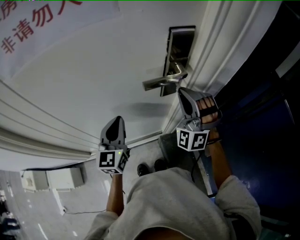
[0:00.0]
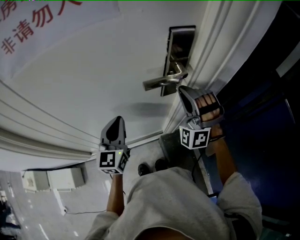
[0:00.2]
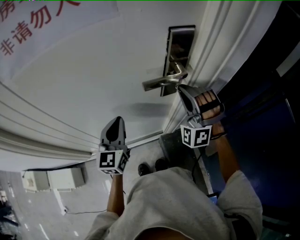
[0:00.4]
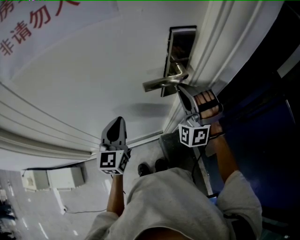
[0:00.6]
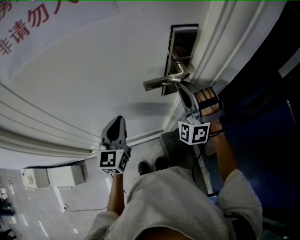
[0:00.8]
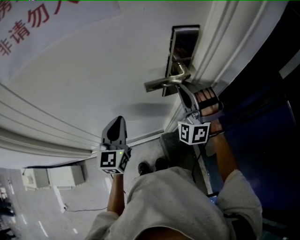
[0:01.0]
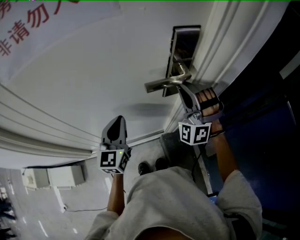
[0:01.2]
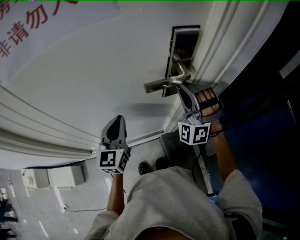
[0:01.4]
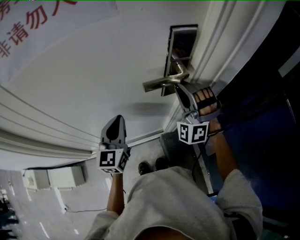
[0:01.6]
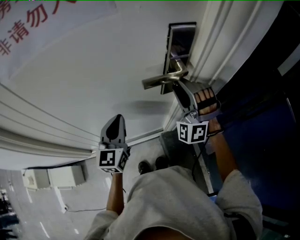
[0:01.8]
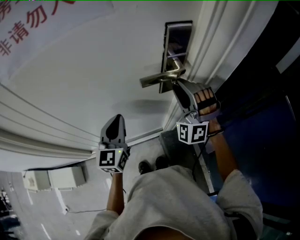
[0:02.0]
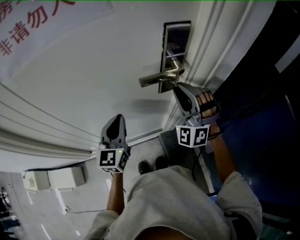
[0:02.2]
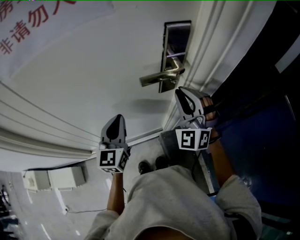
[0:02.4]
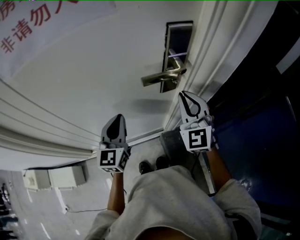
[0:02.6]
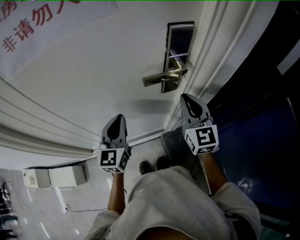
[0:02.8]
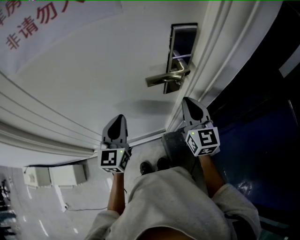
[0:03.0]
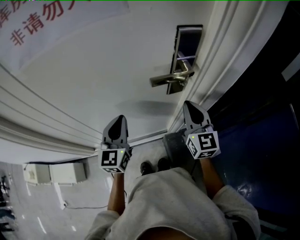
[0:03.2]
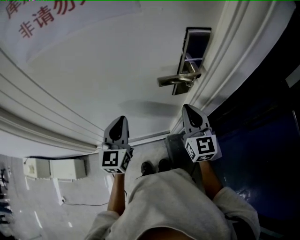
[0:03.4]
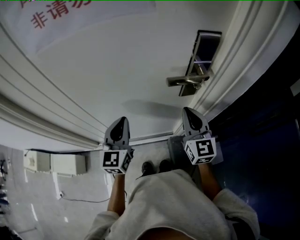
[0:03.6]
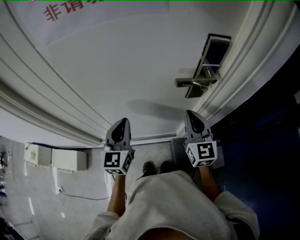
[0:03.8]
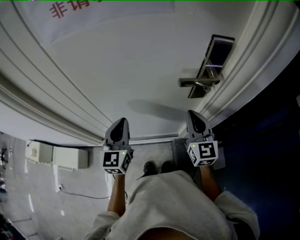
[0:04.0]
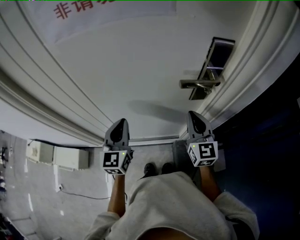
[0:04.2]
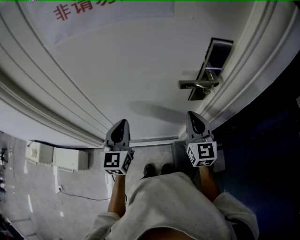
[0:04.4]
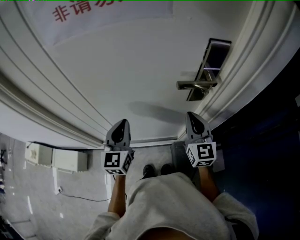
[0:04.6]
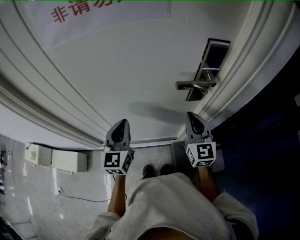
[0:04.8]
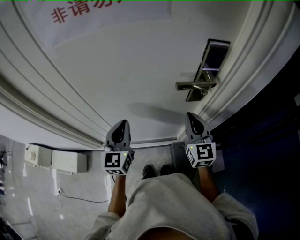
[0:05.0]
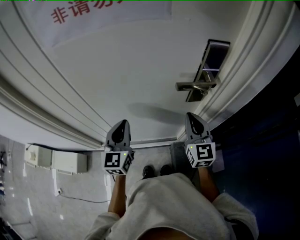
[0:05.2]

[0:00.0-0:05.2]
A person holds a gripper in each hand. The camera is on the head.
0:00.0 to 0:01.8: The right gripper opens its fingers.
0:01.8 to 0:03.4: The right gripper shifts approximately 5 cm backward, rotates around the line of its fingers by approximately 80 degrees, clockwise from behind, and closes up.
0:03.4 to 0:05.2: The left gripper shifts by roughly 5 cm.

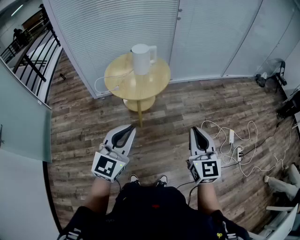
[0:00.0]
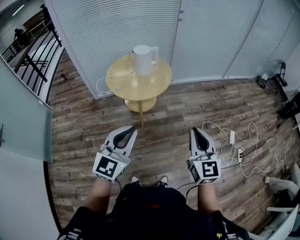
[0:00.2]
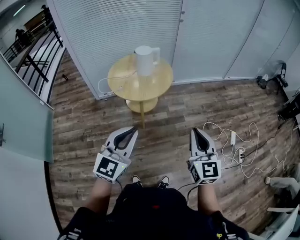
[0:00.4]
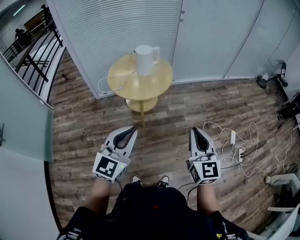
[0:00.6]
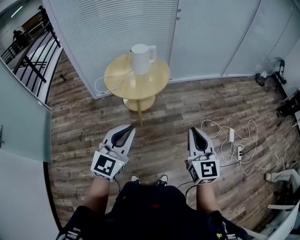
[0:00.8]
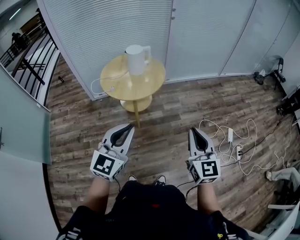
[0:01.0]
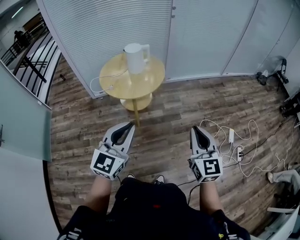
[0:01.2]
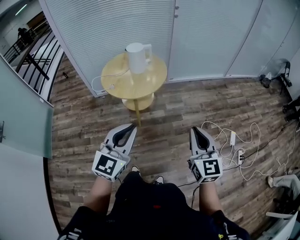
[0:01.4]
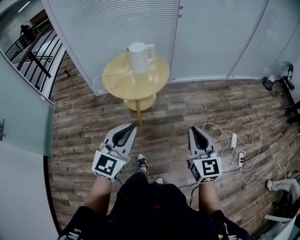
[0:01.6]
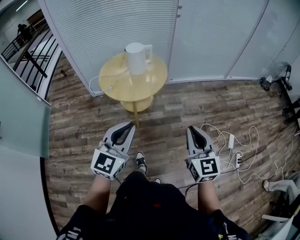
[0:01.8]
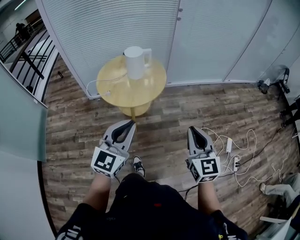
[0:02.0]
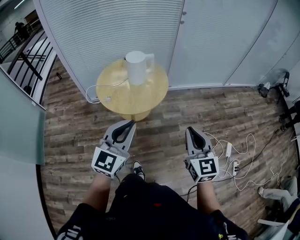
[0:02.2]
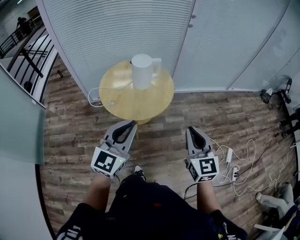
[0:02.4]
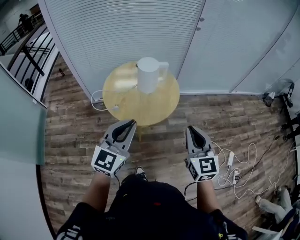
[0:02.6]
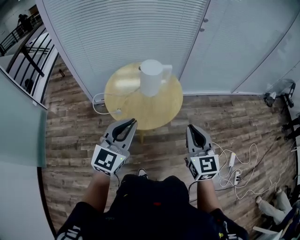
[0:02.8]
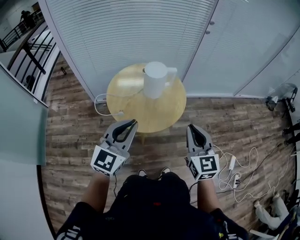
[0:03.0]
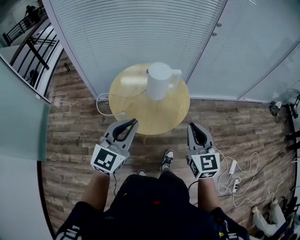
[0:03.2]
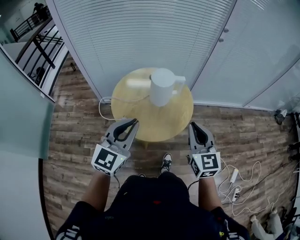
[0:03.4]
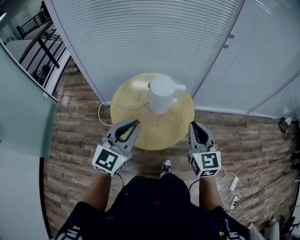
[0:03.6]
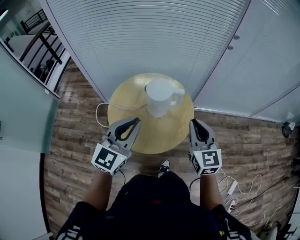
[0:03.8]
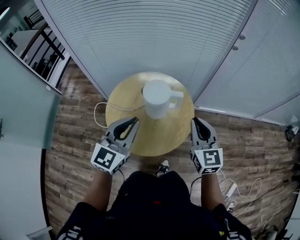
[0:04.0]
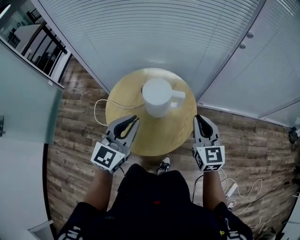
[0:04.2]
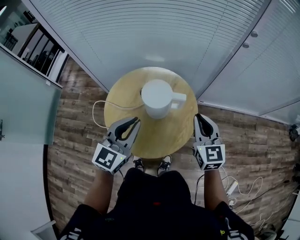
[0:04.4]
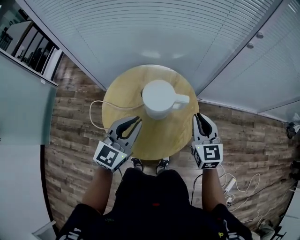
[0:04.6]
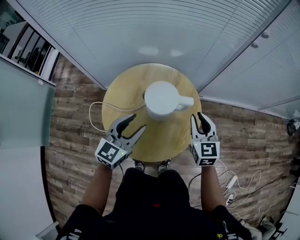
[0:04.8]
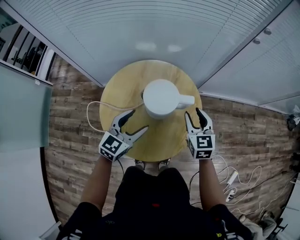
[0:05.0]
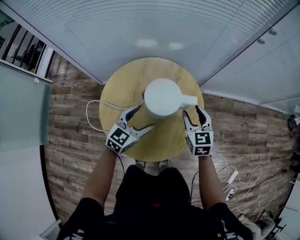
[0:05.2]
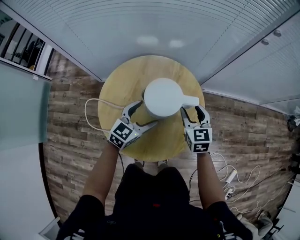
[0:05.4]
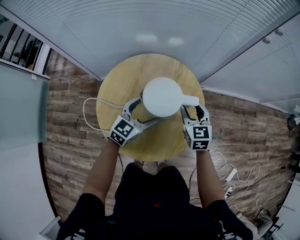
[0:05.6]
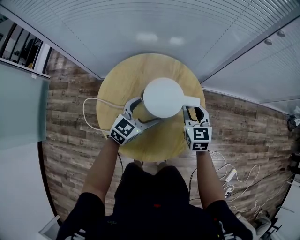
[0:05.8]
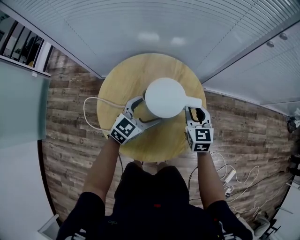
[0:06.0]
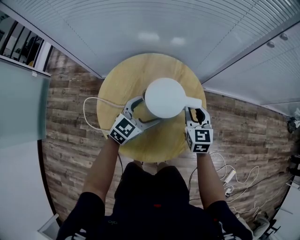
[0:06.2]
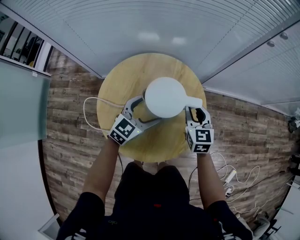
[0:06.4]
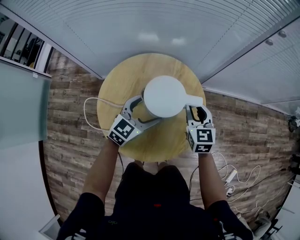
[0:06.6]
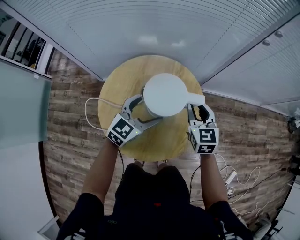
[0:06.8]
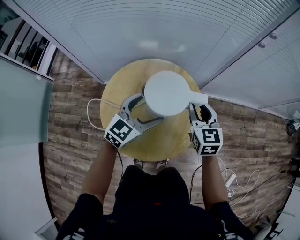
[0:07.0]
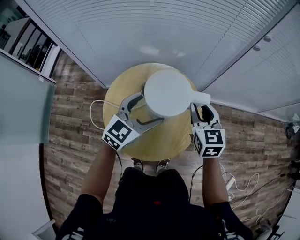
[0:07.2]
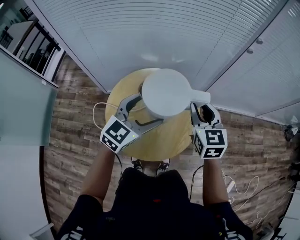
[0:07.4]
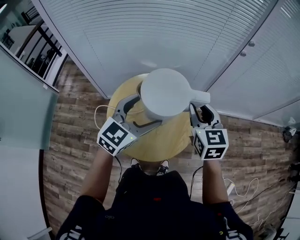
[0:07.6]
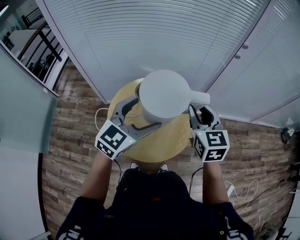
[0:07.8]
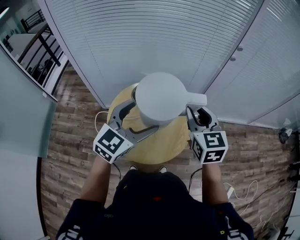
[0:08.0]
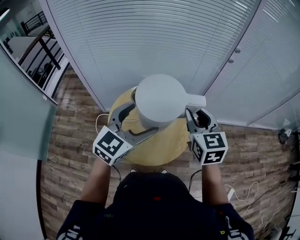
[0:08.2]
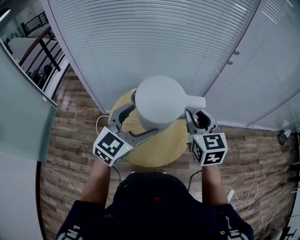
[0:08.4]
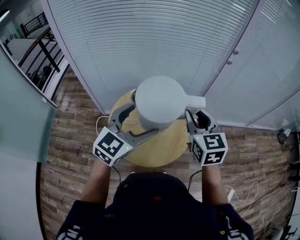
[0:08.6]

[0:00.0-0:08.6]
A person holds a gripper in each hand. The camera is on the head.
0:00.0 to 0:01.4: Both grippers travel together to the right, about 10 cm.
0:01.4 to 0:02.8: The two grippers go roughly 35 cm forward and to the left.
0:02.8 to 0:04.4: The two grippers go some 35 cm forward.
0:04.4 to 0:05.8: The left gripper travels downward and forward by some 25 cm, changes its angle by approximately 20 degrees, and opens its fingers, while the right gripper moves downward, forward and to the left, approximately 20 cm, and opens up.
0:05.8 to 0:07.2: Both grippers travel together upward, roughly 15 cm.
0:07.2 to 0:08.6: The grippers both shift upward and backward by approximately 20 cm.

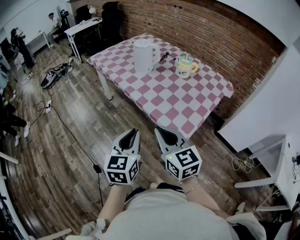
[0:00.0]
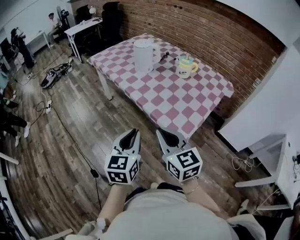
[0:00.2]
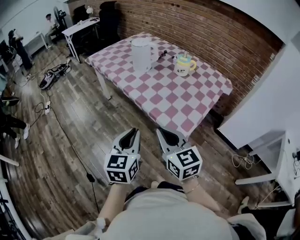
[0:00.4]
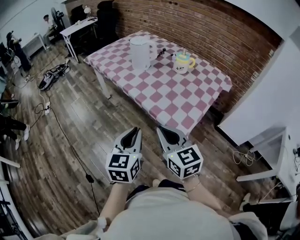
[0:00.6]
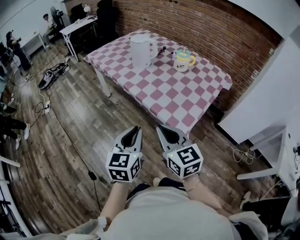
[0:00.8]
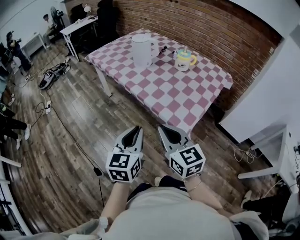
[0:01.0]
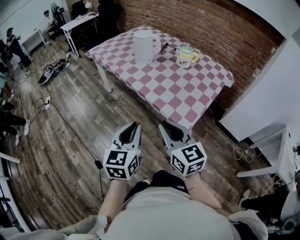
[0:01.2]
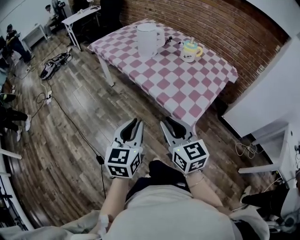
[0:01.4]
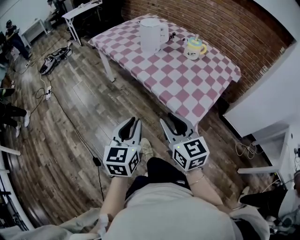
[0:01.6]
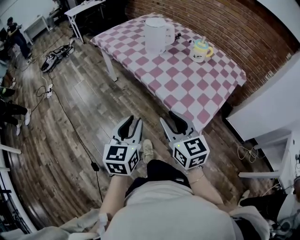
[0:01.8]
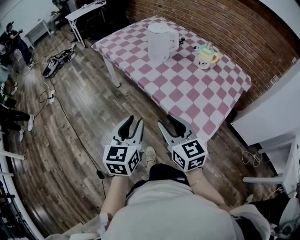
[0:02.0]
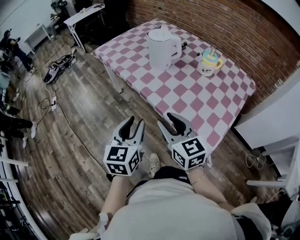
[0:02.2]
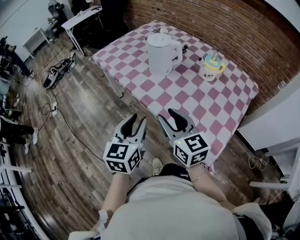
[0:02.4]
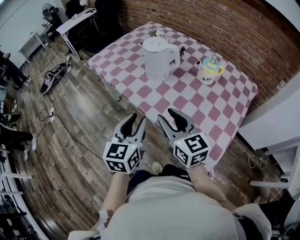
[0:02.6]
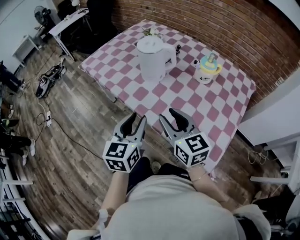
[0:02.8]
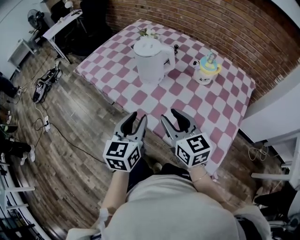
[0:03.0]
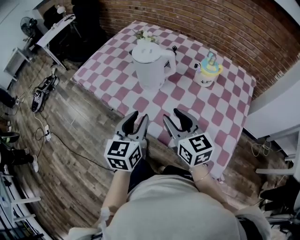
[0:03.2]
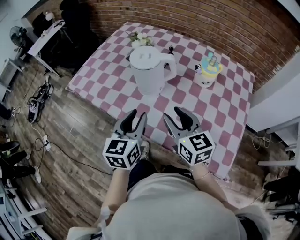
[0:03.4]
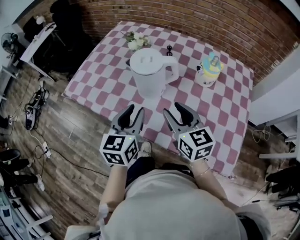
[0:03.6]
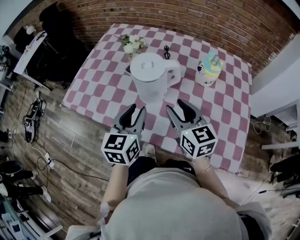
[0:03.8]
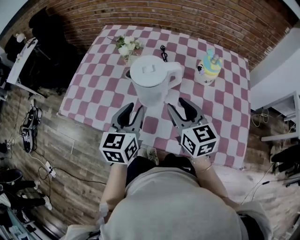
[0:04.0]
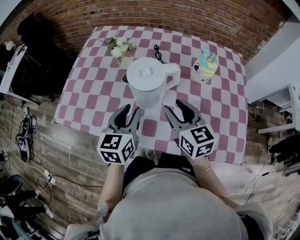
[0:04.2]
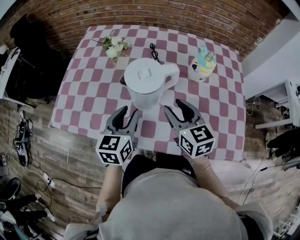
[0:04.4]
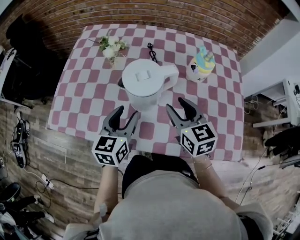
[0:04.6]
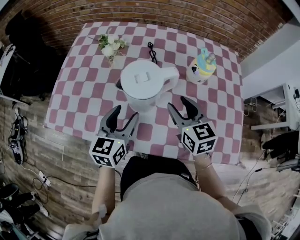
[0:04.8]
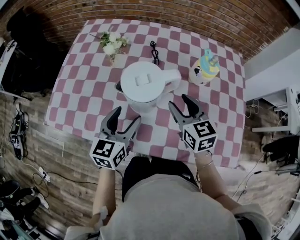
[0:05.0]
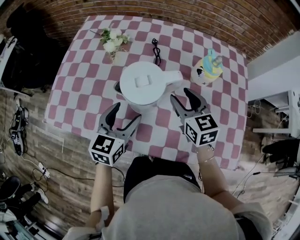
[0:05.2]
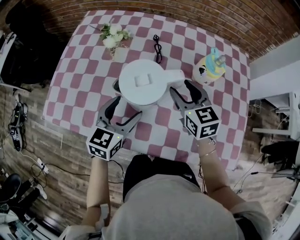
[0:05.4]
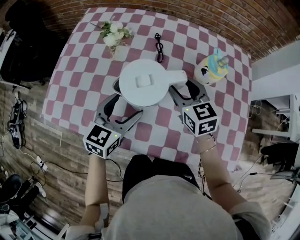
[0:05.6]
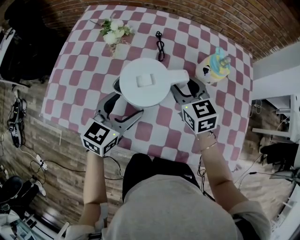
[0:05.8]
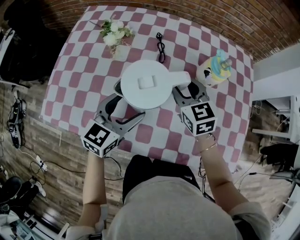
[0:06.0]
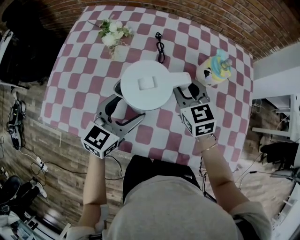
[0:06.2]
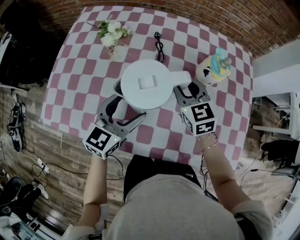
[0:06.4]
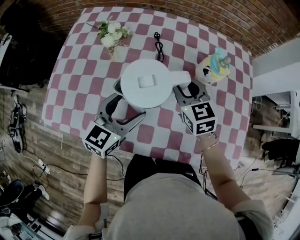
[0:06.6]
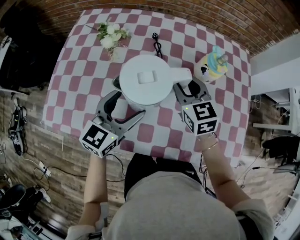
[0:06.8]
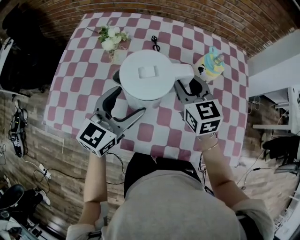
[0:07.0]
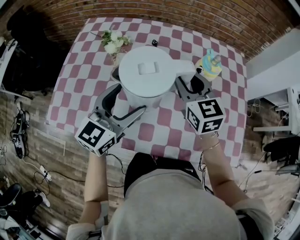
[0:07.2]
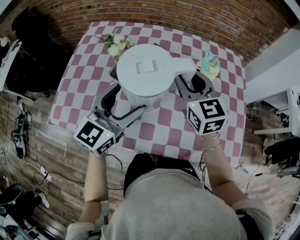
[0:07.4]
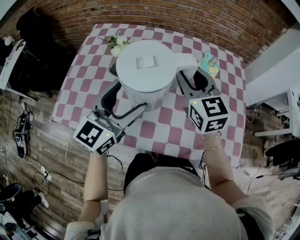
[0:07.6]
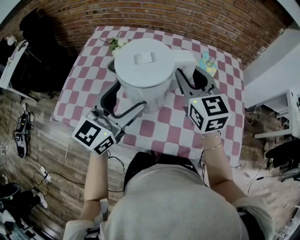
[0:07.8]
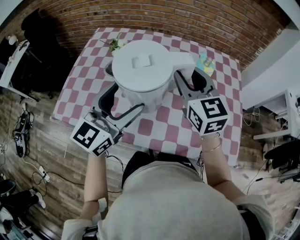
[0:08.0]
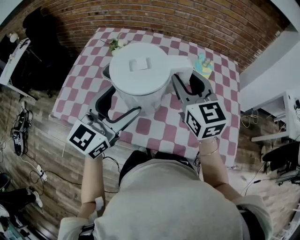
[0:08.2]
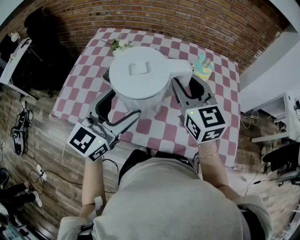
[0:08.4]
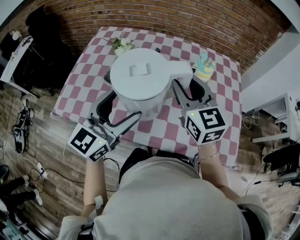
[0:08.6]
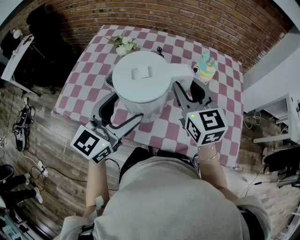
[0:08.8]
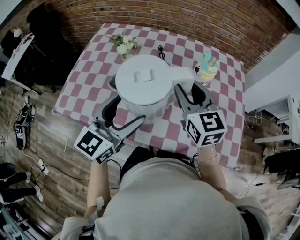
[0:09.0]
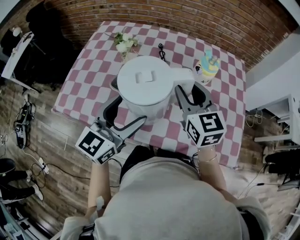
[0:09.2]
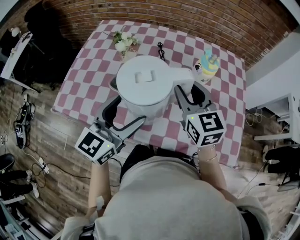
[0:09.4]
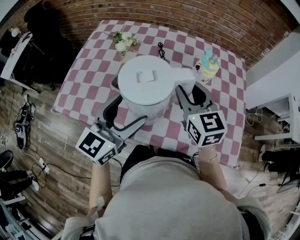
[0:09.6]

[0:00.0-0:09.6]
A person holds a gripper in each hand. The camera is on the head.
0:00.0 to 0:01.6: The right gripper opens up, while the left gripper travels to the left by roughly 5 cm.
0:01.6 to 0:03.2: Both grippers travel together forward, some 35 cm.
0:03.2 to 0:04.8: The right gripper changes place by some 20 cm, and turns by approximately 30 degrees. The left gripper changes place by approximately 25 cm, rotates about 30 degrees, and opens.
0:04.8 to 0:06.4: The right gripper travels forward by approximately 10 cm. Meanwhile the left gripper changes place by about 5 cm.
0:06.4 to 0:08.0: Both grippers move upward and backward, approximately 20 cm.
0:08.0 to 0:09.6: The right gripper moves downward, some 5 cm. Meanwhile the left gripper shifts by approximately 5 cm.
